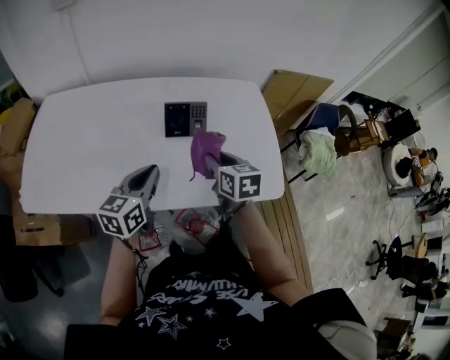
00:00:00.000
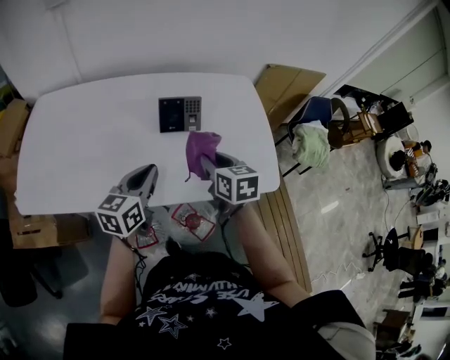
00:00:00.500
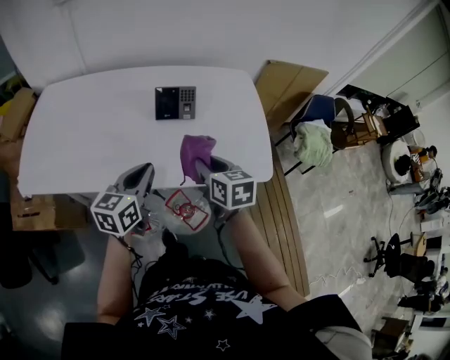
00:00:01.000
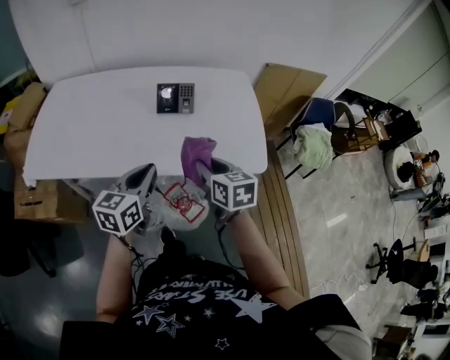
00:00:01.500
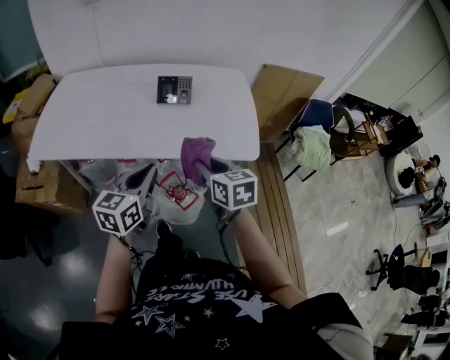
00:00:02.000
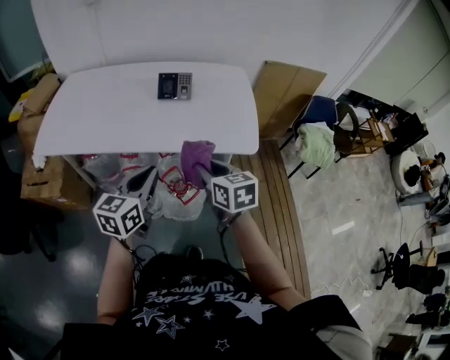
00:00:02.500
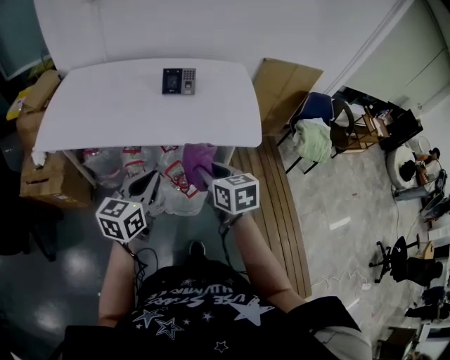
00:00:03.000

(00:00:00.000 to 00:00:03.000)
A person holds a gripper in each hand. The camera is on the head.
00:00:00.000 - 00:00:01.500: The right gripper goes approximately 15 cm backward; the left gripper heads backward and to the right, covering approximately 15 cm.
00:00:01.500 - 00:00:03.000: Both grippers travel together backward, approximately 15 cm.

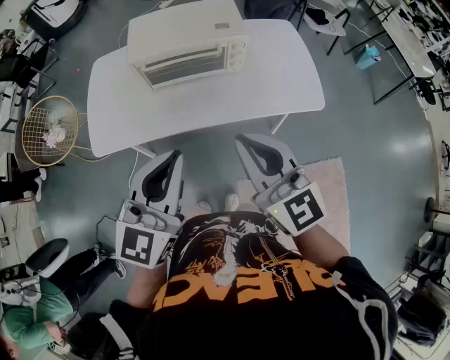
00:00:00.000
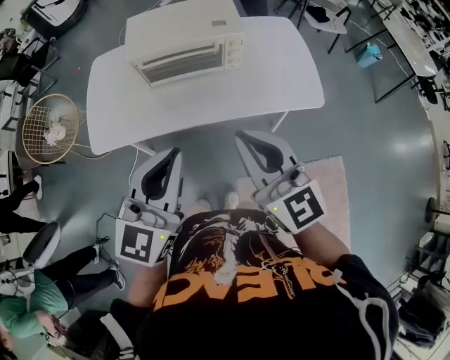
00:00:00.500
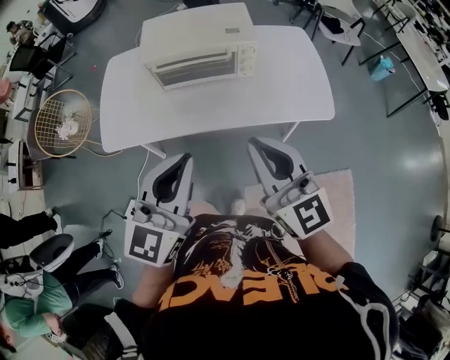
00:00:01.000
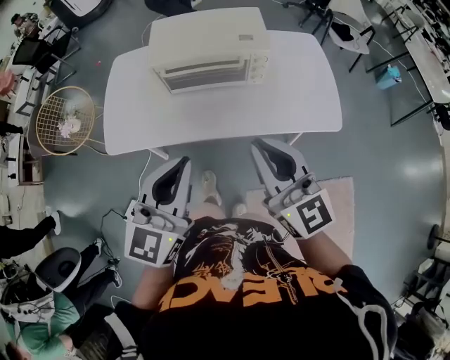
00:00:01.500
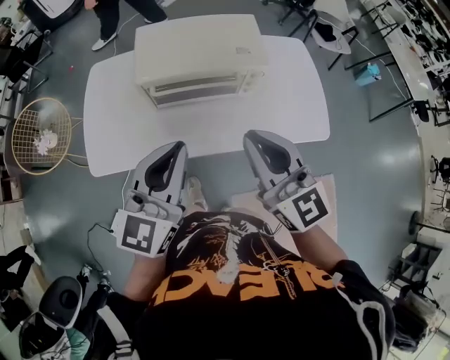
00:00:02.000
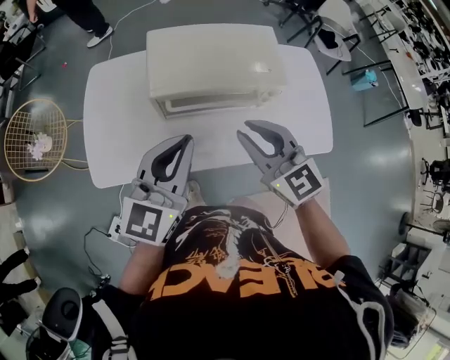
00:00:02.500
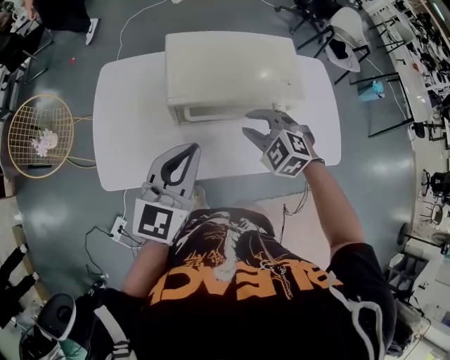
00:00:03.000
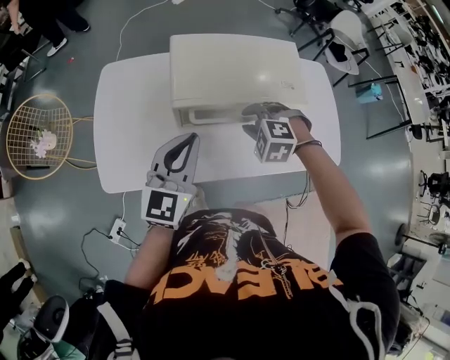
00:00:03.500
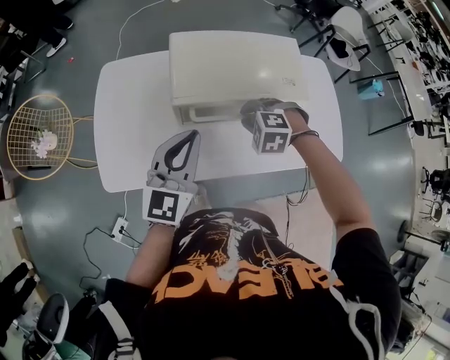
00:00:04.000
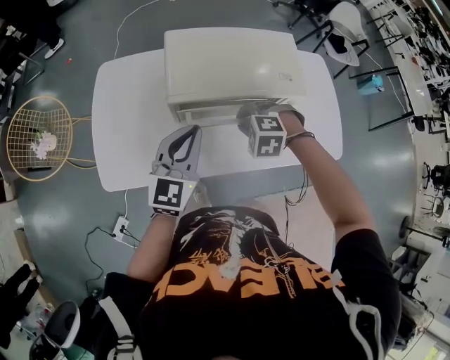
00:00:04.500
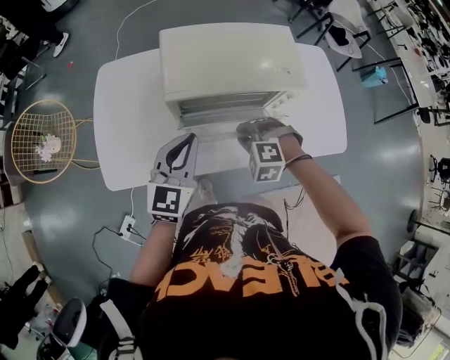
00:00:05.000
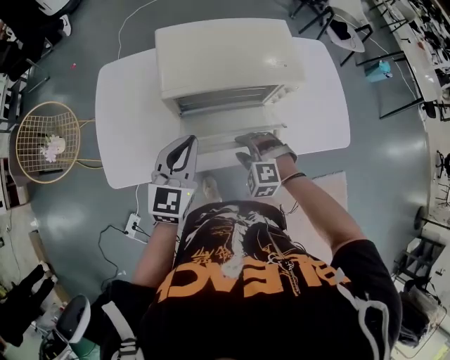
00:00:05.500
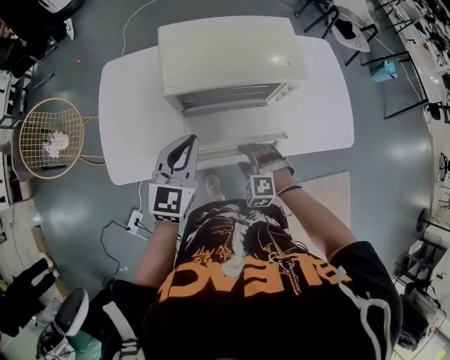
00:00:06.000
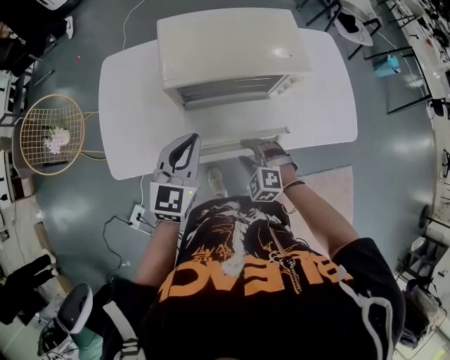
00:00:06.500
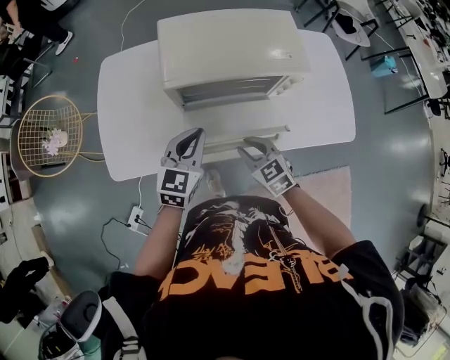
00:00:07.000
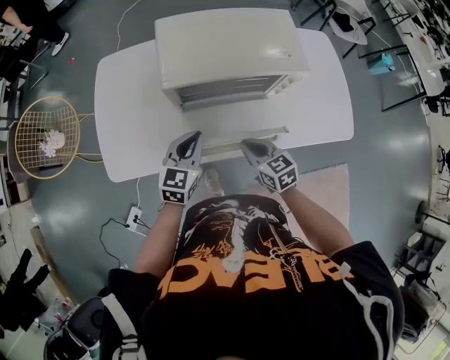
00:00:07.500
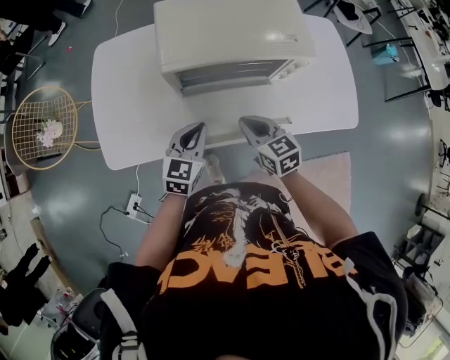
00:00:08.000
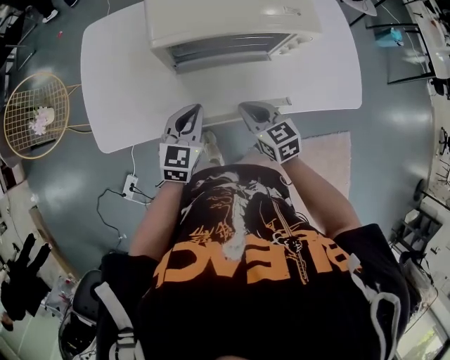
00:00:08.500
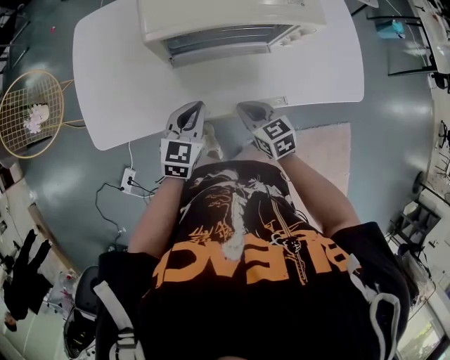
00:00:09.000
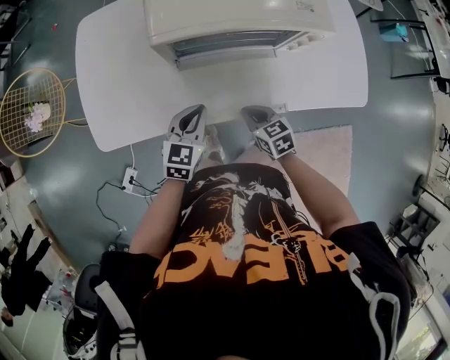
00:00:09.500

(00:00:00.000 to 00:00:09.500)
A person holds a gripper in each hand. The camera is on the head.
00:00:00.000 - 00:00:02.000: Both grippers travel together forward, some 15 cm.
00:00:02.000 - 00:00:04.000: The left gripper moves forward, to the left and downward, roughly 20 cm. Meanwhile the right gripper goes some 35 cm downward and forward, and tips its fingers downward by roughly 70 degrees.
00:00:04.000 - 00:00:05.500: The right gripper is displaced backward and downward by approximately 15 cm, and opens its fingers; the left gripper moves downward, some 5 cm.
00:00:05.500 - 00:00:07.500: The left gripper travels downward by about 10 cm, while the right gripper twists approximately 70 degrees clockwise, seen from behind, and closes up.
00:00:07.500 - 00:00:09.500: The grippers both shift downward by roughly 10 cm.

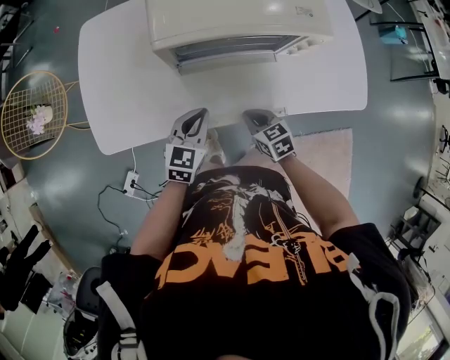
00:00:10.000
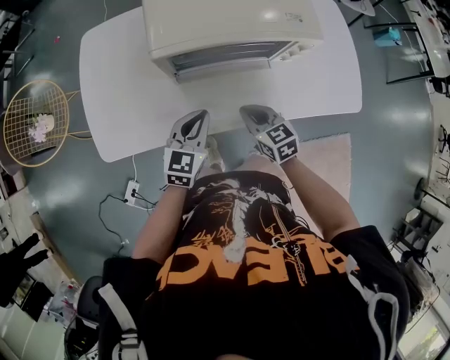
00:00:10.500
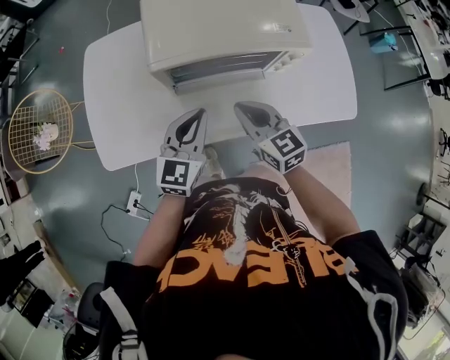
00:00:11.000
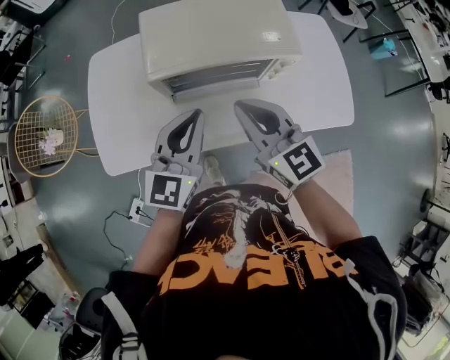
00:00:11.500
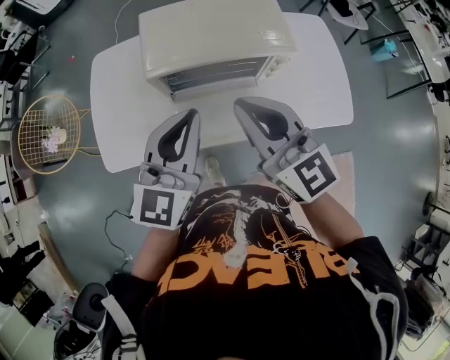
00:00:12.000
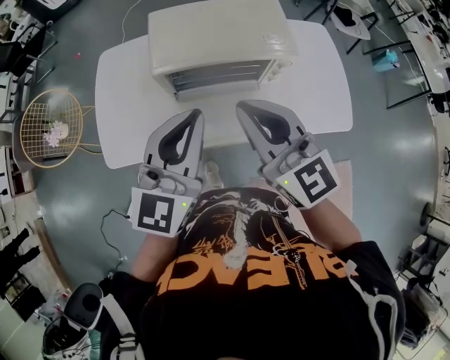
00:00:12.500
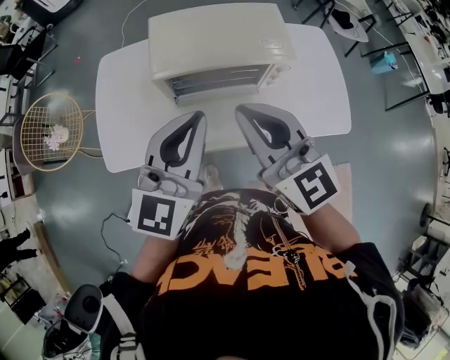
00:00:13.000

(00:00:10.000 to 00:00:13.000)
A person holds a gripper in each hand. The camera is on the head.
00:00:10.000 - 00:00:11.500: Both grippers travel together upward, some 25 cm. The right gripper points its fingers approximately 40 degrees further upward. Meanwhile the left gripper swivels some 20 degrees.
00:00:11.500 - 00:00:13.000: Both grippers move upward, about 10 cm.

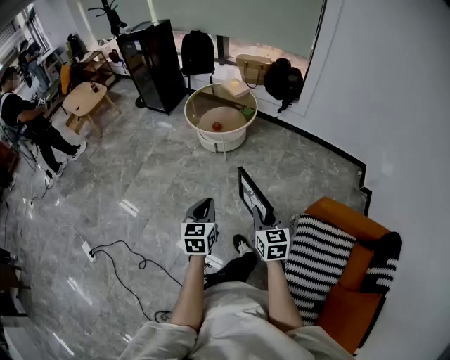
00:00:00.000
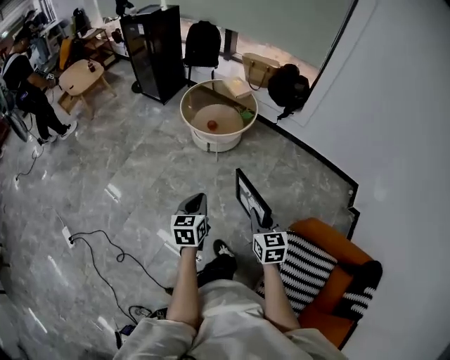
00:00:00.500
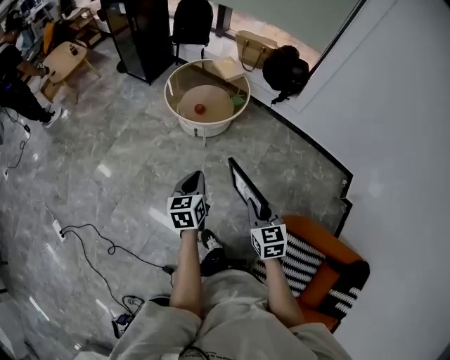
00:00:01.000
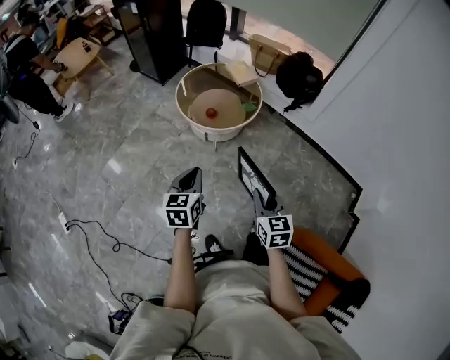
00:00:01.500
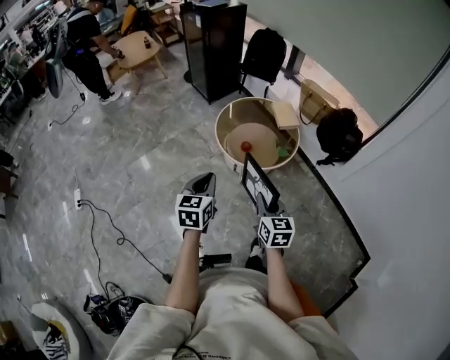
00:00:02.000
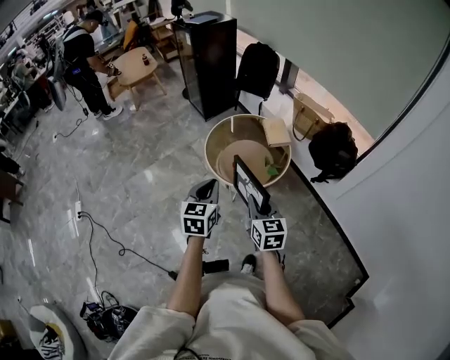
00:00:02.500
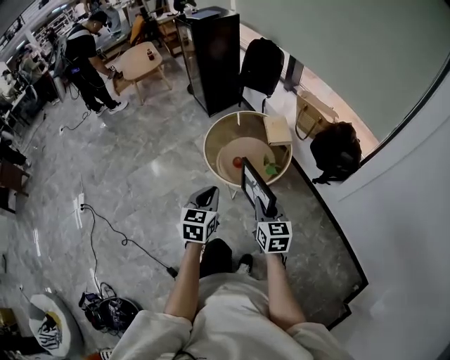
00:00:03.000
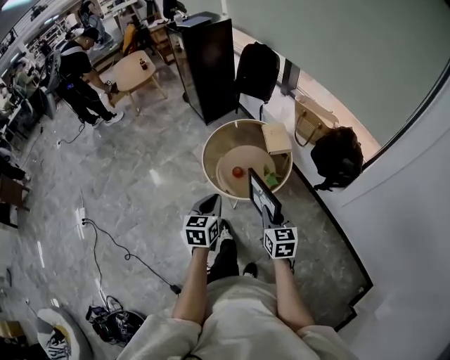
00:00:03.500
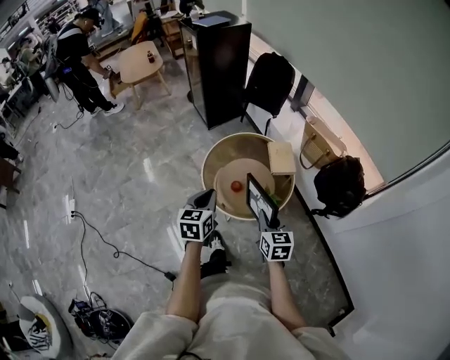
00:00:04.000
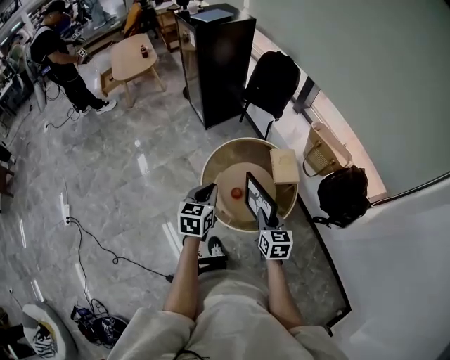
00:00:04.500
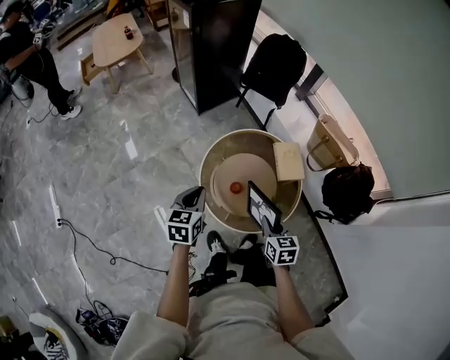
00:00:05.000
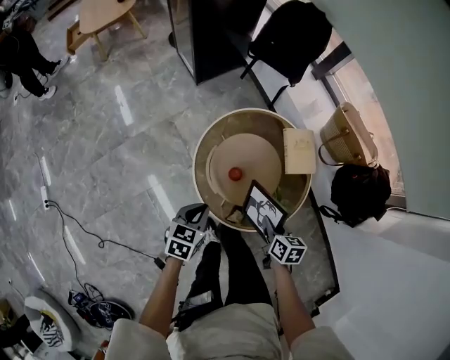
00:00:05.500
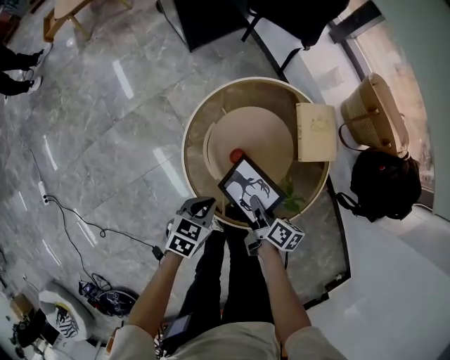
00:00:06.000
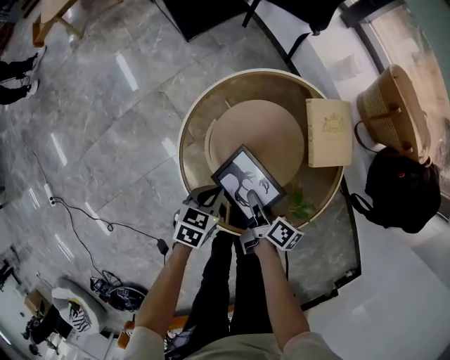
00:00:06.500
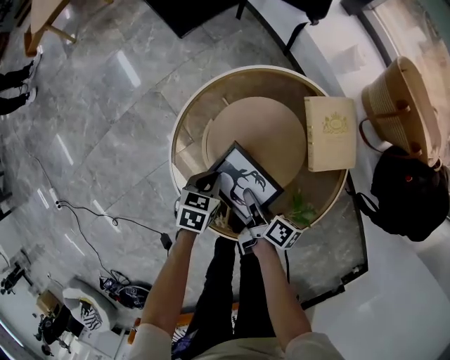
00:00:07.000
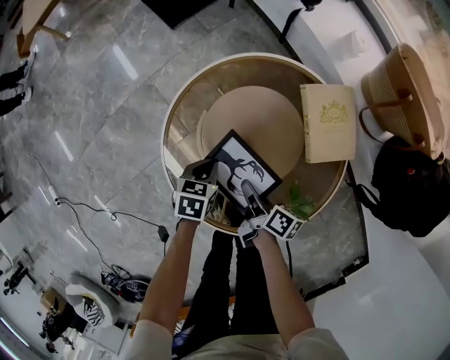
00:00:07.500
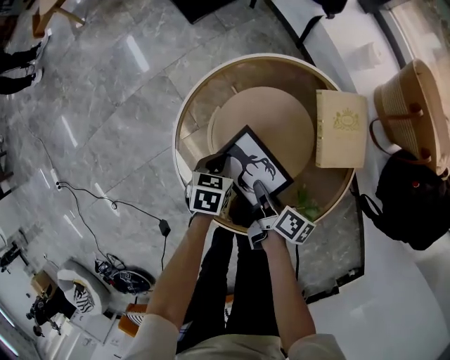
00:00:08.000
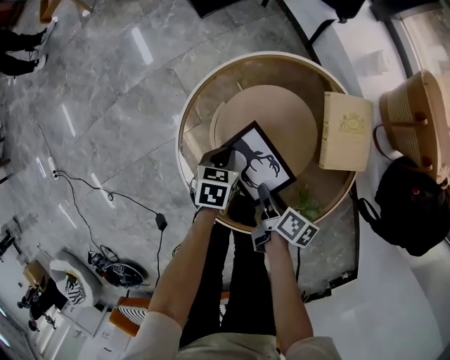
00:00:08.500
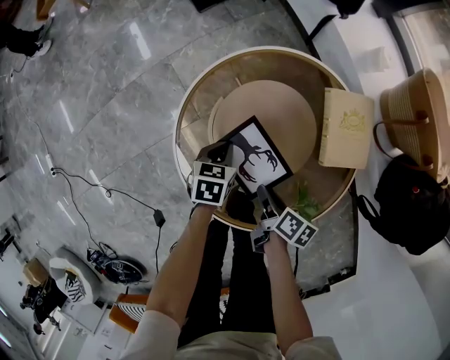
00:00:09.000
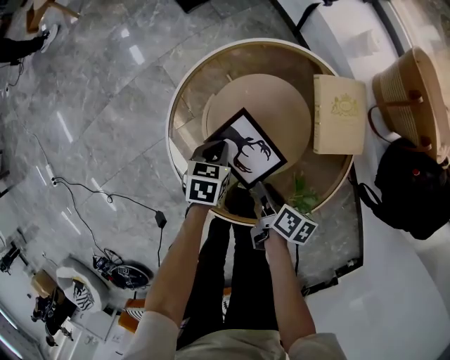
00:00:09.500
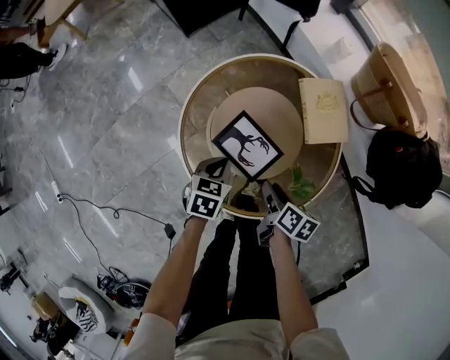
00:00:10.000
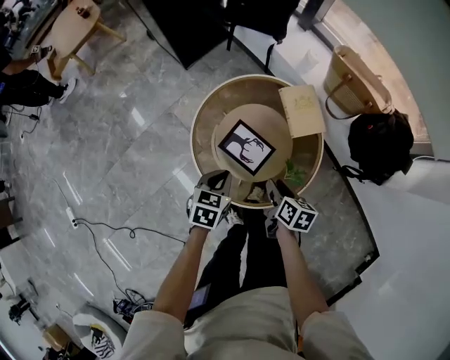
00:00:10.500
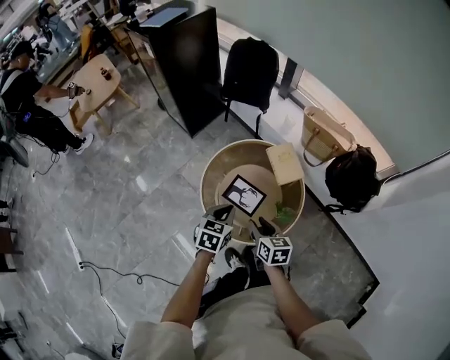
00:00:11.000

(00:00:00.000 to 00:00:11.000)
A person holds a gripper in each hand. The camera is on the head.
00:00:00.000 - 00:00:02.000: The two grippers travel together, forward, approximately 40 cm. The right gripper swivels roughly 20 degrees. Meanwhile the left gripper changes its angle by roughly 20 degrees.
00:00:02.000 - 00:00:03.500: The two grippers go approximately 20 cm to the right and forward.
00:00:03.500 - 00:00:05.500: The right gripper goes roughly 40 cm forward and downward, and rotates approximately 30 degrees, while the left gripper goes approximately 40 cm forward, downward and to the left, and rotates some 20 degrees.
00:00:05.500 - 00:00:07.500: The two grippers go about 30 cm downward and forward. The right gripper twists roughly 40 degrees clockwise, seen from behind.
00:00:07.500 - 00:00:09.000: The right gripper shifts by approximately 5 cm, turns by roughly 20 degrees, and opens its fingers.
00:00:09.000 - 00:00:11.000: Both grippers move upward, some 40 cm. The left gripper turns by some 30 degrees; the right gripper swivels approximately 50 degrees.
